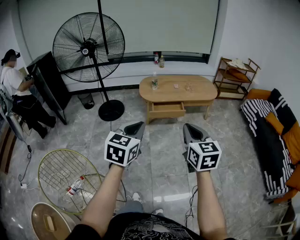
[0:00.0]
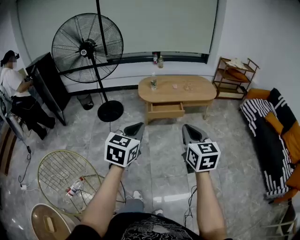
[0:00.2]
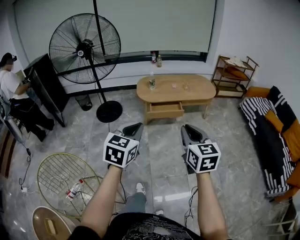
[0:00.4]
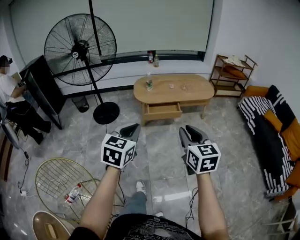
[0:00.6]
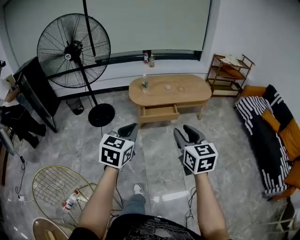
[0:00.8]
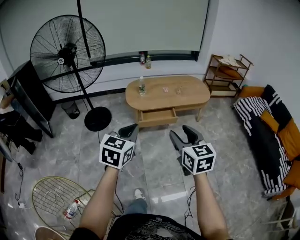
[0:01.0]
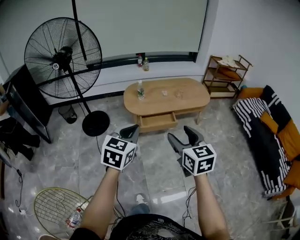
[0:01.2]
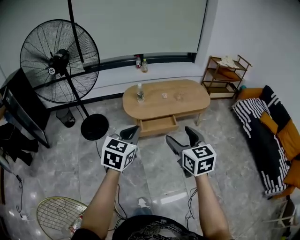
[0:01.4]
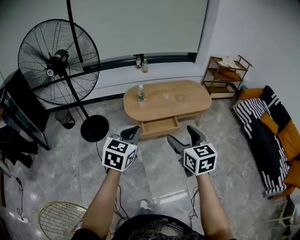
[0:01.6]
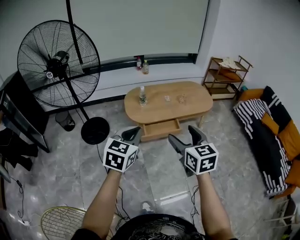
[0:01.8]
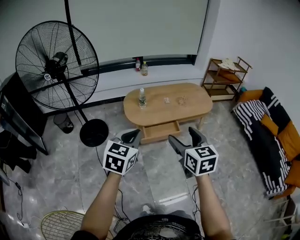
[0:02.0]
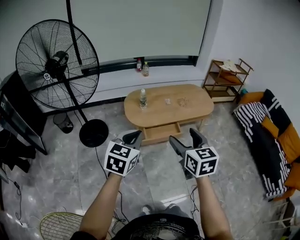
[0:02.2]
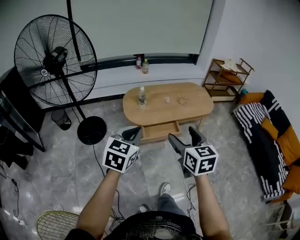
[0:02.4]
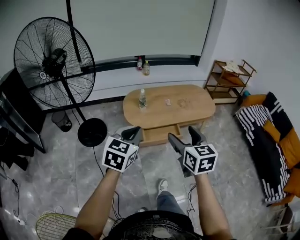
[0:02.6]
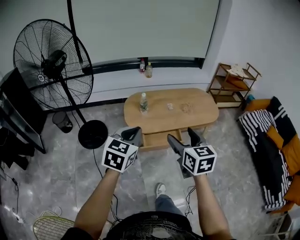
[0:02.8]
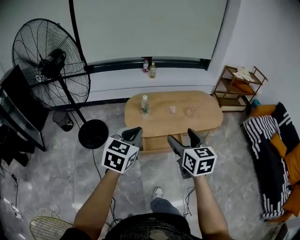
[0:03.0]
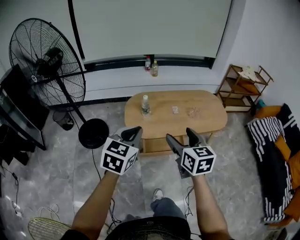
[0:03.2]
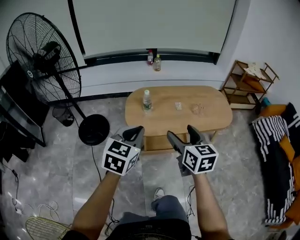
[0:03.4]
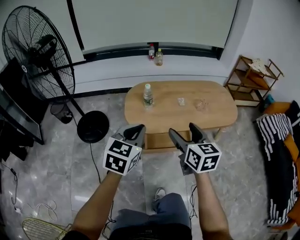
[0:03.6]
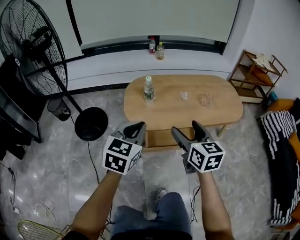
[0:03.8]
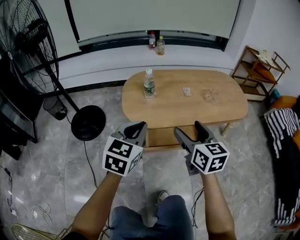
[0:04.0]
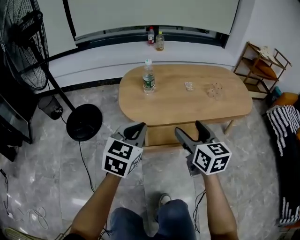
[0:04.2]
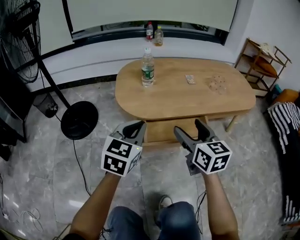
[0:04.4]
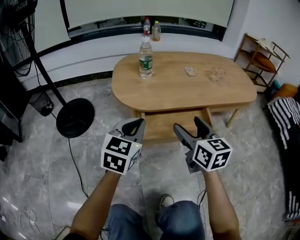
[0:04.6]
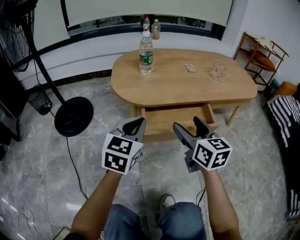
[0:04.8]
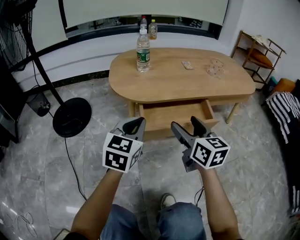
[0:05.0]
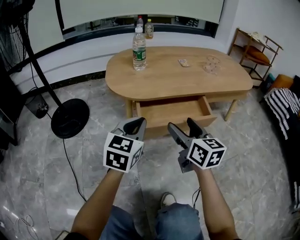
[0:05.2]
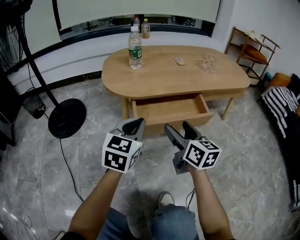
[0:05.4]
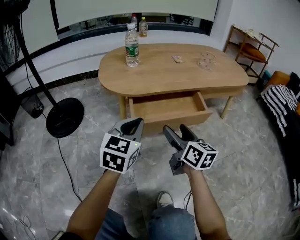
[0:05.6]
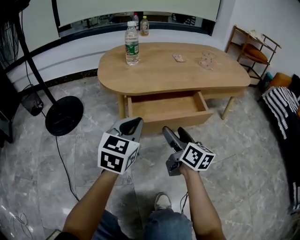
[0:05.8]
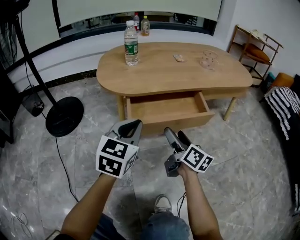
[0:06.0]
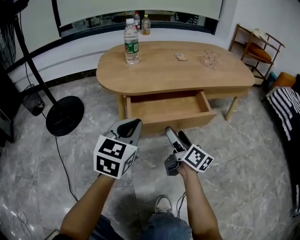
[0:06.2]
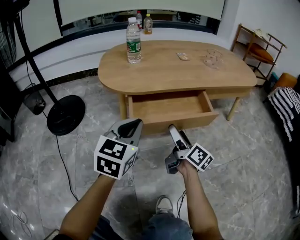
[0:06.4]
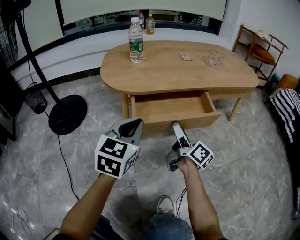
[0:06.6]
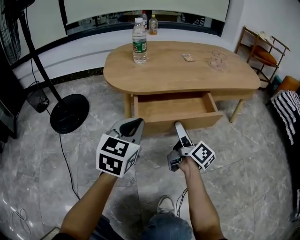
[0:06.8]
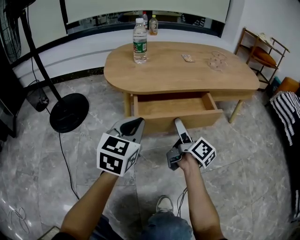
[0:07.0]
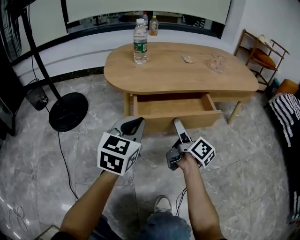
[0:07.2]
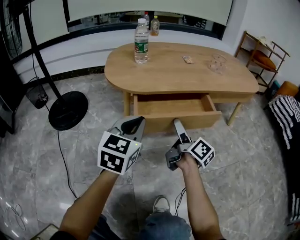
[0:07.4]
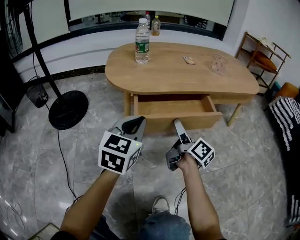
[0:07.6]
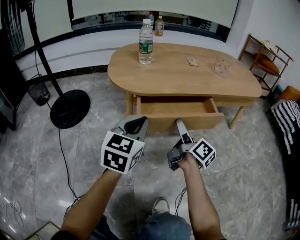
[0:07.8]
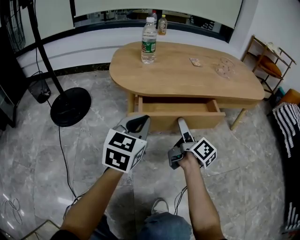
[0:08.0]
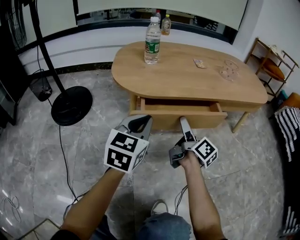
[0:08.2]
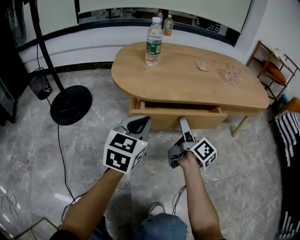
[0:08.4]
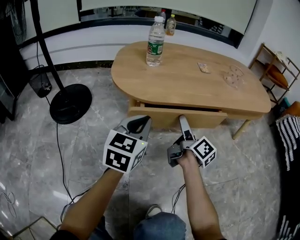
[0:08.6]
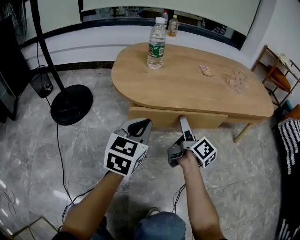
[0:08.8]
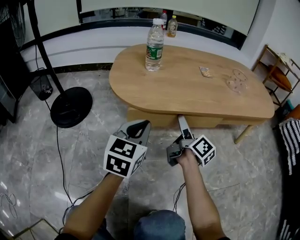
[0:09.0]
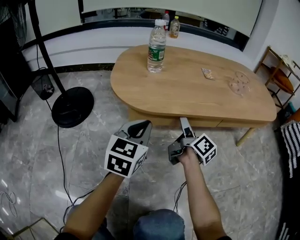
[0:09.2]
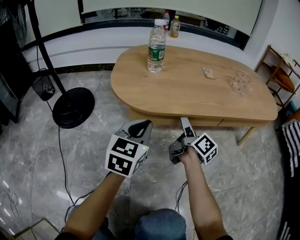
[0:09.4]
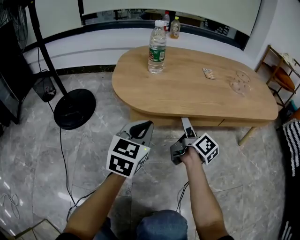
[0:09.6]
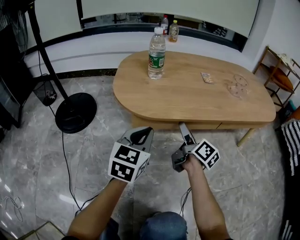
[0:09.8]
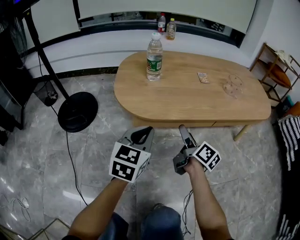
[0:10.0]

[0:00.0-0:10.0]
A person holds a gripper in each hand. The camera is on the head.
0:00.0 to 0:01.4: Both grippers move forward, some 25 cm. The right gripper opens.
0:01.4 to 0:02.8: Both grippers travel together forward, roughly 15 cm.
0:02.8 to 0:04.2: The grippers both shift downward and forward by some 35 cm.
0:04.2 to 0:05.8: Both grippers move downward, about 20 cm. The right gripper changes its angle by roughly 30 degrees.
0:05.8 to 0:07.2: The right gripper ends up roughly 5 cm from where it was, and changes its angle by about 30 degrees.
0:07.2 to 0:08.6: The two grippers go some 5 cm forward.
0:08.6 to 0:10.0: The grippers make only small movements.

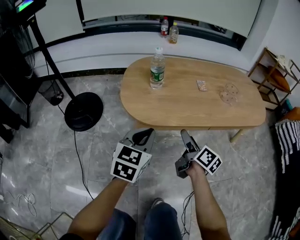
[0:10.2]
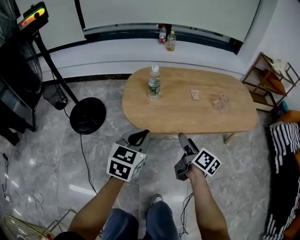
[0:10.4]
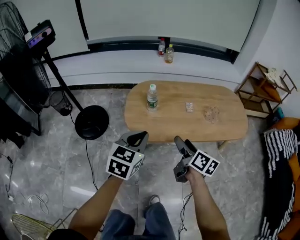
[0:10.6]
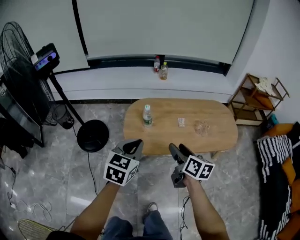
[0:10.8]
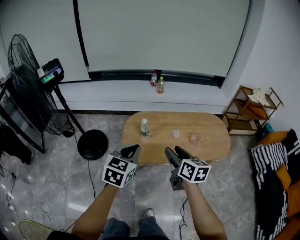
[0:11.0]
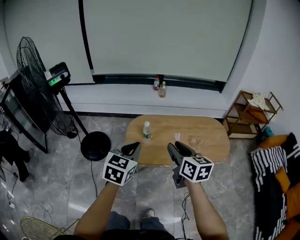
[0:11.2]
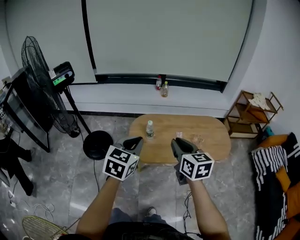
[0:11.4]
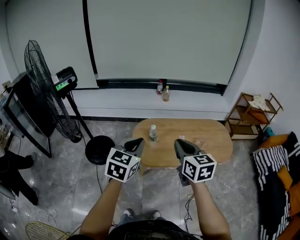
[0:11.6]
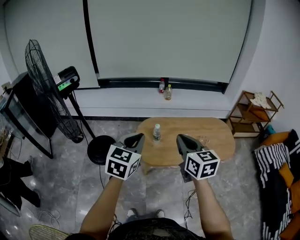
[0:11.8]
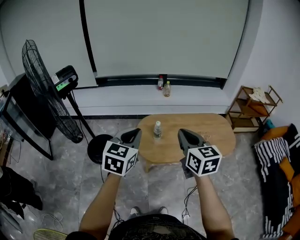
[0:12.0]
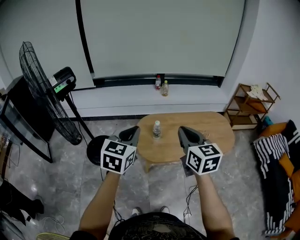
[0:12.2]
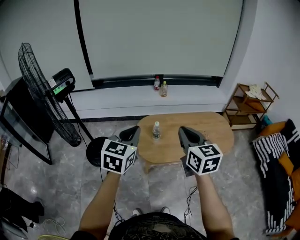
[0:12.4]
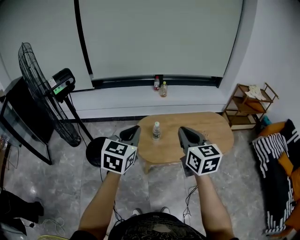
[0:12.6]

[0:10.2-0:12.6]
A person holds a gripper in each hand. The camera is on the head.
0:10.2 to 0:11.4: The two grippers go roughly 50 cm upward. The right gripper twists roughly 50 degrees counterclockwise, seen from behind, and closes its fingers.
0:11.4 to 0:12.6: The left gripper heads to the left, covering approximately 10 cm, while the right gripper travels to the left and upward by approximately 10 cm.

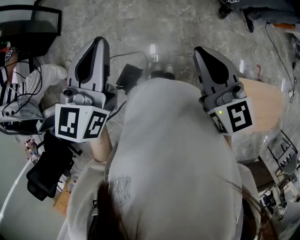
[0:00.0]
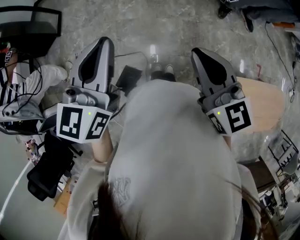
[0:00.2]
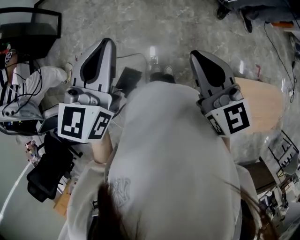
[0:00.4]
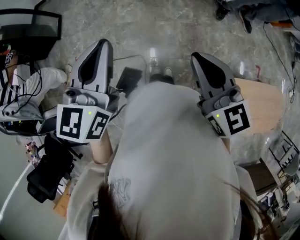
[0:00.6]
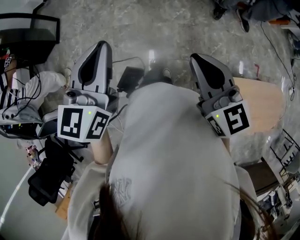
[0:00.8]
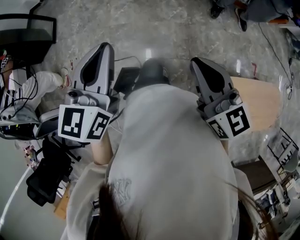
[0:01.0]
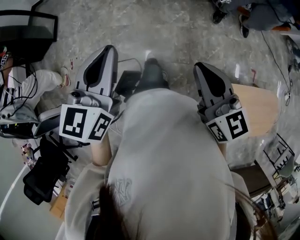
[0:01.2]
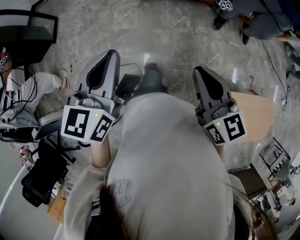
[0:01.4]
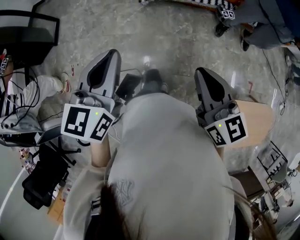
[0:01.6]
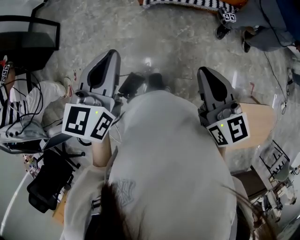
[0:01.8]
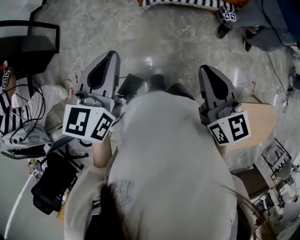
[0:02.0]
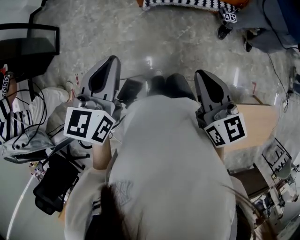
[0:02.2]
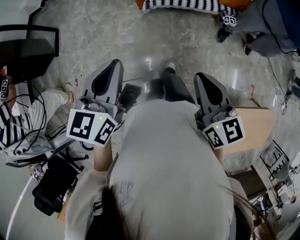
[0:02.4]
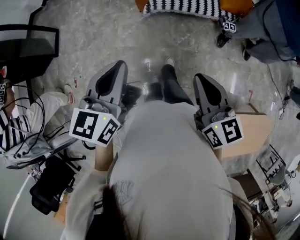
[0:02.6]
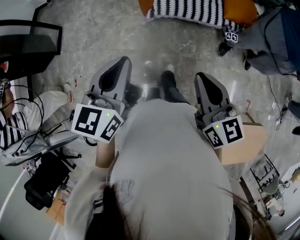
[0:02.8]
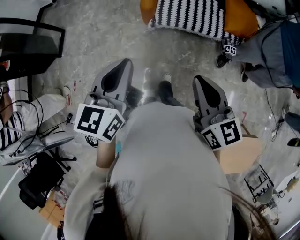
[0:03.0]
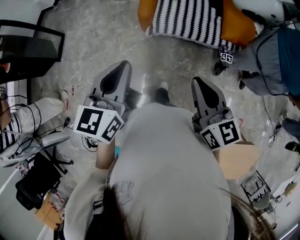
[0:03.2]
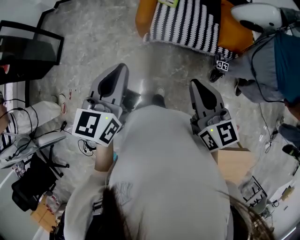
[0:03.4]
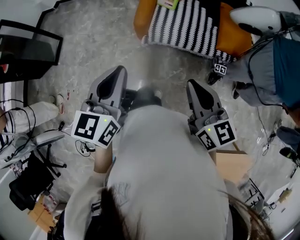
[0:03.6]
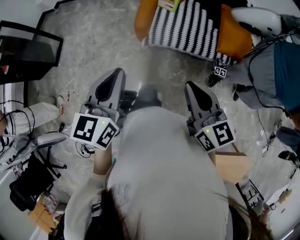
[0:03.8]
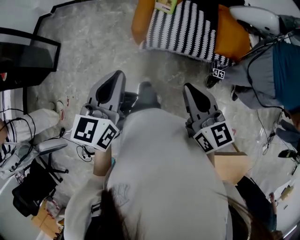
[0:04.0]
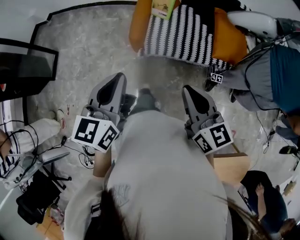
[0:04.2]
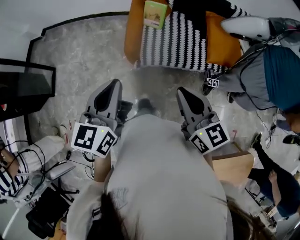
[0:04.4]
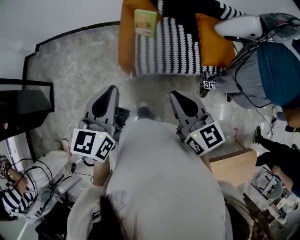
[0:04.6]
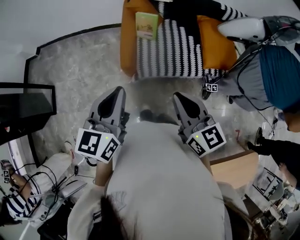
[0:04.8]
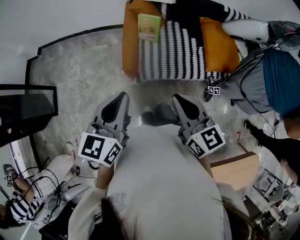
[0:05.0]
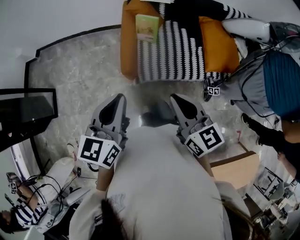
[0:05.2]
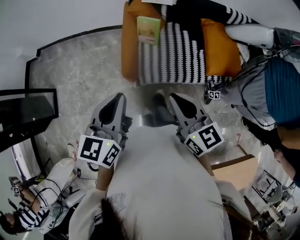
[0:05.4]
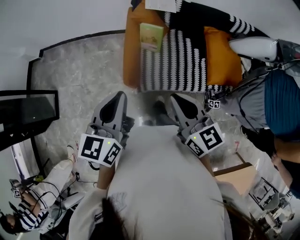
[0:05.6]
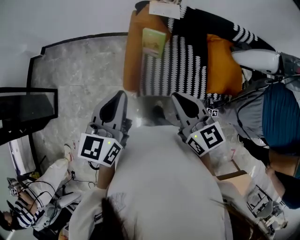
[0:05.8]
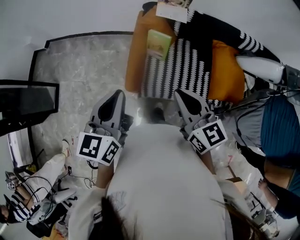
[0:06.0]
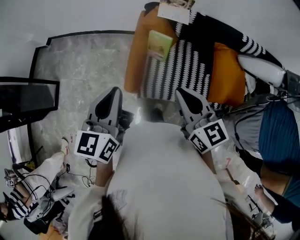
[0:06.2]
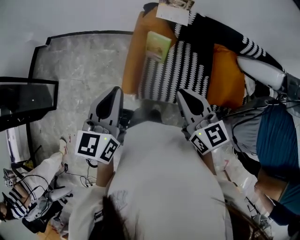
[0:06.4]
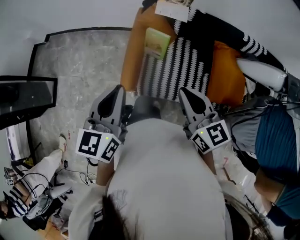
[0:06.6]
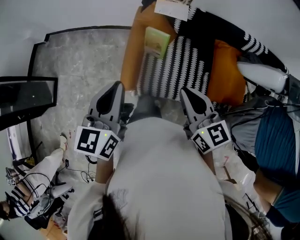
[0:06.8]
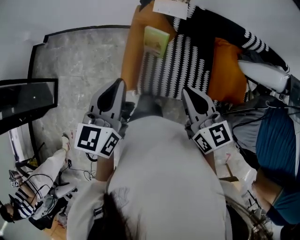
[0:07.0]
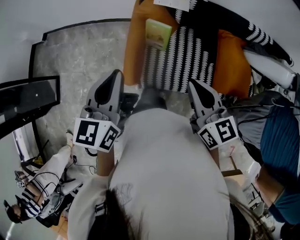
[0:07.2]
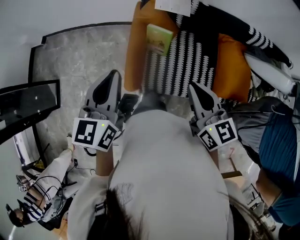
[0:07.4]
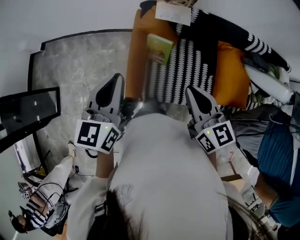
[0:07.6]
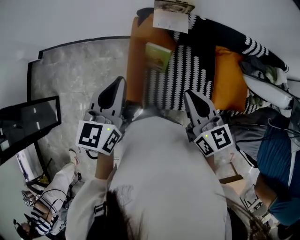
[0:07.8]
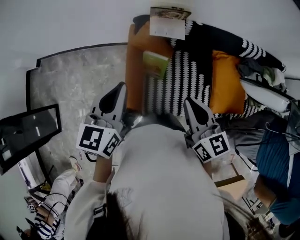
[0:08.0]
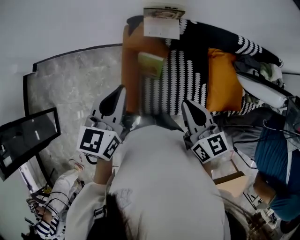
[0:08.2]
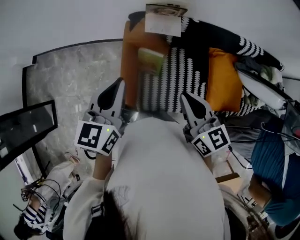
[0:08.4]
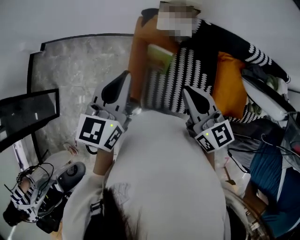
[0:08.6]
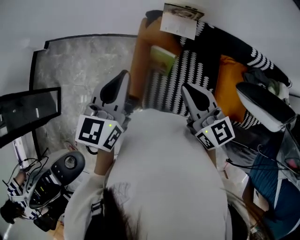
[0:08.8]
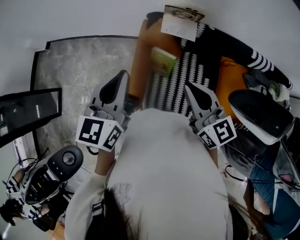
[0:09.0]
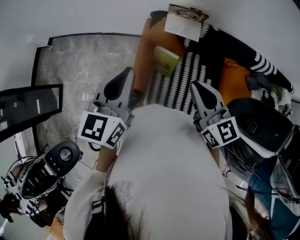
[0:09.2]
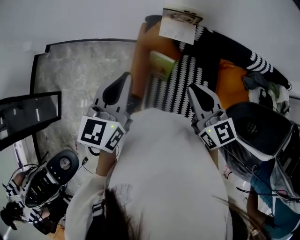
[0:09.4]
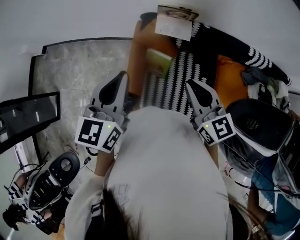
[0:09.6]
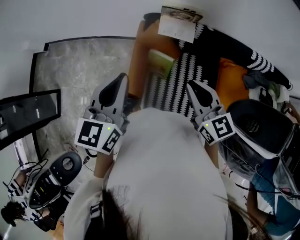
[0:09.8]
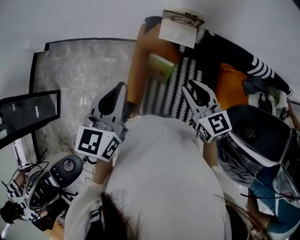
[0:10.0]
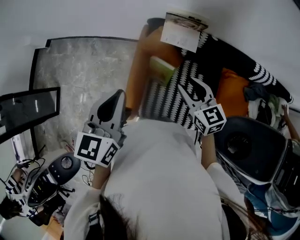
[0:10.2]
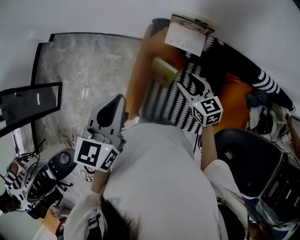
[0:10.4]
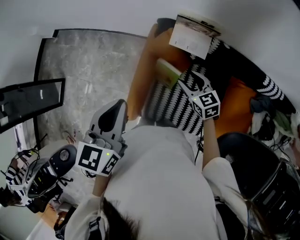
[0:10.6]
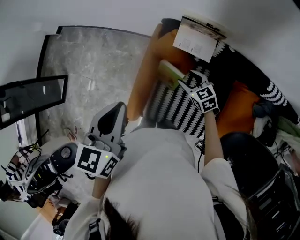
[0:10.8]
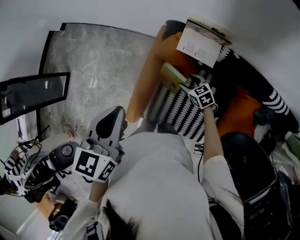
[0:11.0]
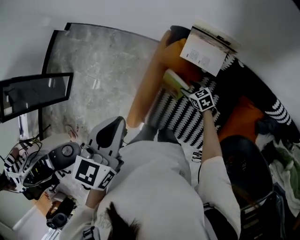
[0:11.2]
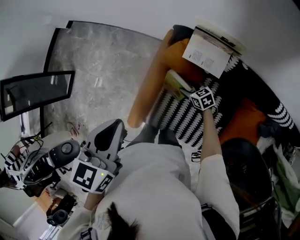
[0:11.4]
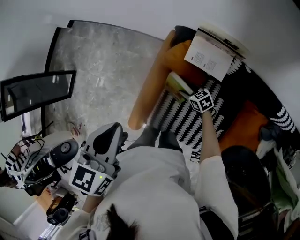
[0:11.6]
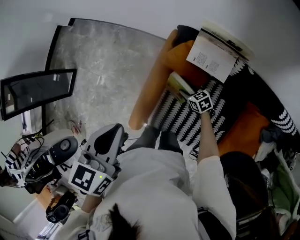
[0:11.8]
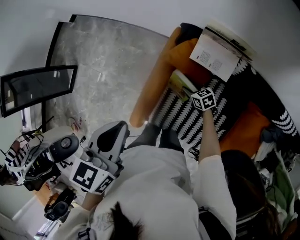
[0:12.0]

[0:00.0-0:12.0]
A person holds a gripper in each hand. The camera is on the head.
0:00.0 to 0:01.6: Both grippers move forward, some 10 cm.
0:01.6 to 0:03.0: The two grippers go about 20 cm forward.
0:03.0 to 0:04.4: Both grippers move forward, some 20 cm.
0:04.4 to 0:06.0: Both grippers move forward, about 25 cm.
0:06.0 to 0:07.6: The left gripper heads forward, covering approximately 15 cm. The right gripper shifts roughly 15 cm forward and to the right.
0:07.6 to 0:09.0: Both grippers travel together forward, approximately 5 cm.
0:09.0 to 0:10.4: The right gripper travels downward and forward by about 20 cm, turns by some 20 degrees, and opens. Meanwhile the left gripper ends up some 5 cm from where it was.
0:10.4 to 0:12.0: The right gripper shifts about 30 cm downward, and changes its angle by some 30 degrees. Meanwhile the left gripper moves downward, roughly 5 cm.
